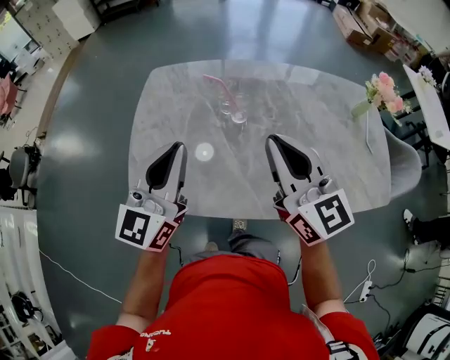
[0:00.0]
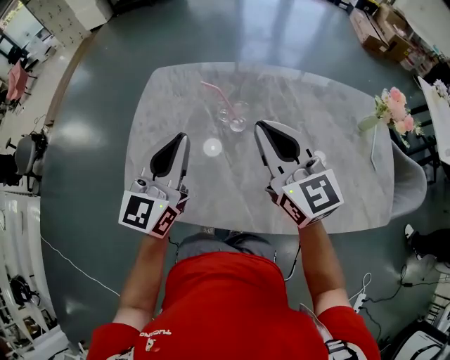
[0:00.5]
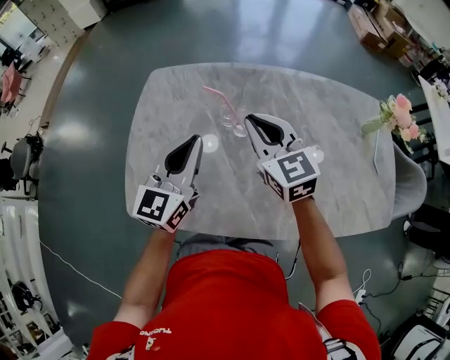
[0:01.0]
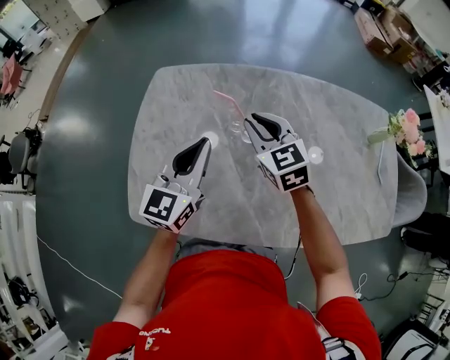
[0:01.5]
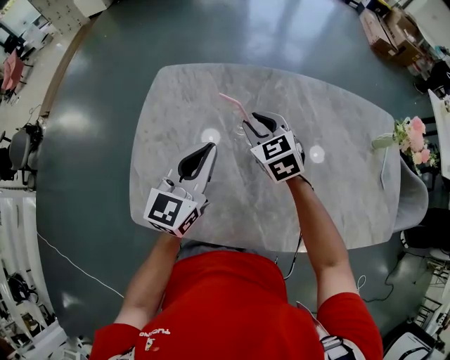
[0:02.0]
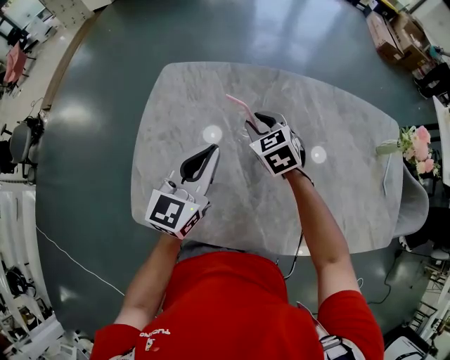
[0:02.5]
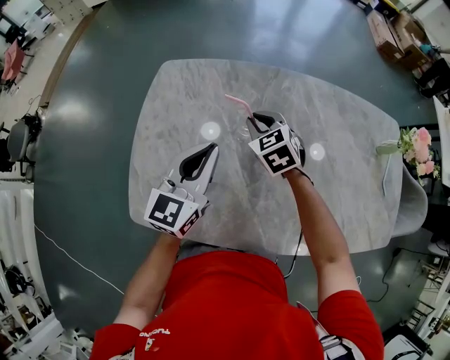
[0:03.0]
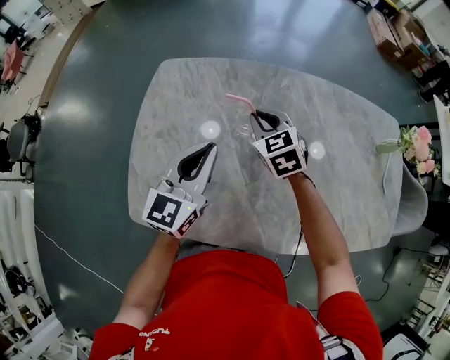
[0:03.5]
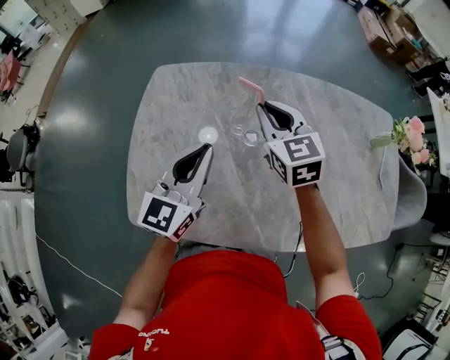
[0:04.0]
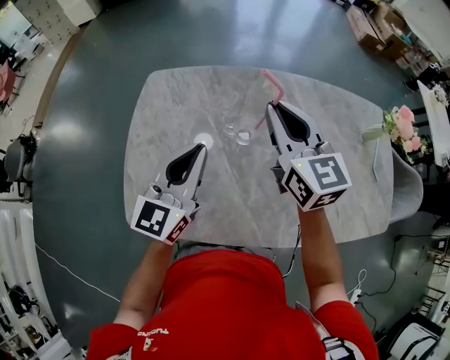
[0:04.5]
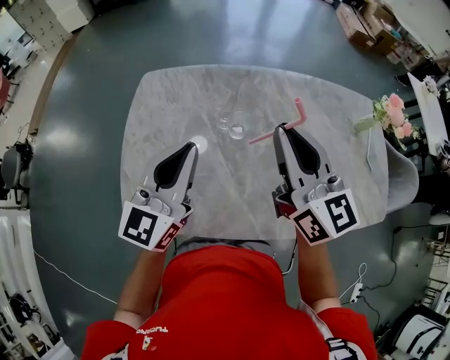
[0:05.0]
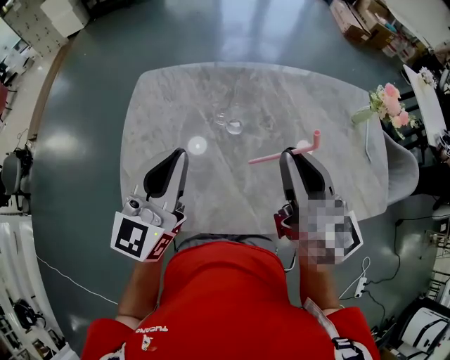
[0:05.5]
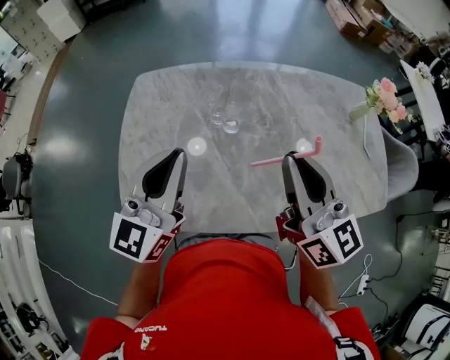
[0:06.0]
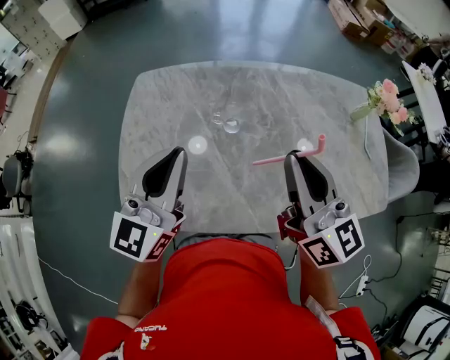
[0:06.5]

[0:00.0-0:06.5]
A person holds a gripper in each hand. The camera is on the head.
0:00.0 to 0:02.0: The right gripper travels forward and downward by some 30 cm, angles its fingers downward, by some 40 degrees, and opens up. The left gripper moves forward and downward, some 15 cm.
0:02.0 to 0:04.5: The right gripper moves upward, approximately 15 cm, and turns by roughly 30 degrees.
0:04.5 to 0:06.5: The left gripper heads backward and upward, covering some 10 cm. The right gripper is displaced backward by roughly 15 cm.

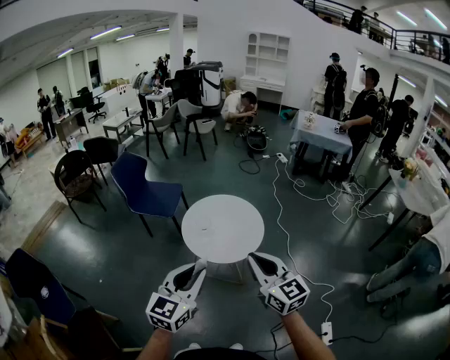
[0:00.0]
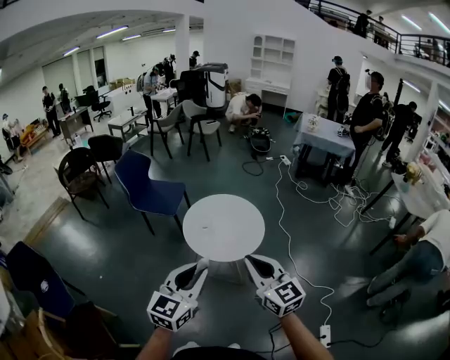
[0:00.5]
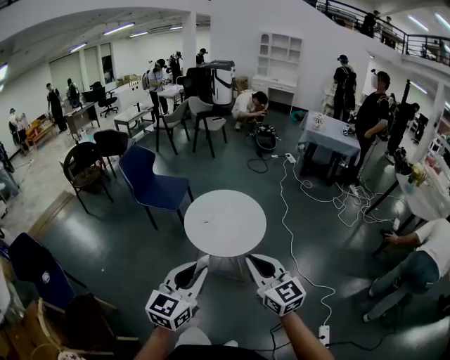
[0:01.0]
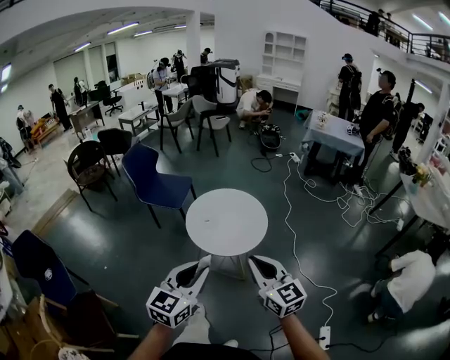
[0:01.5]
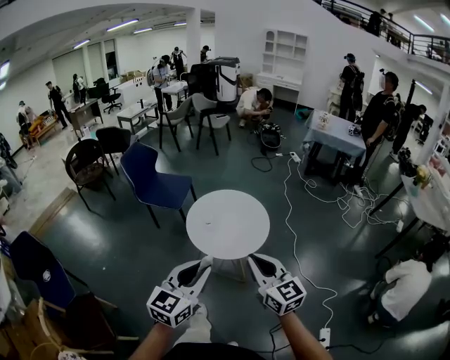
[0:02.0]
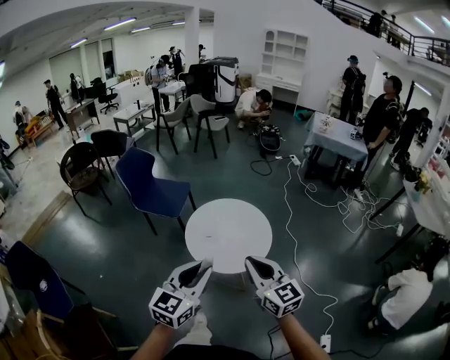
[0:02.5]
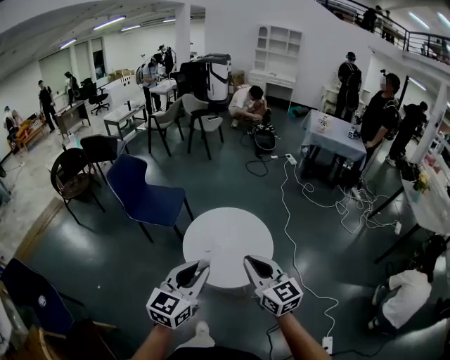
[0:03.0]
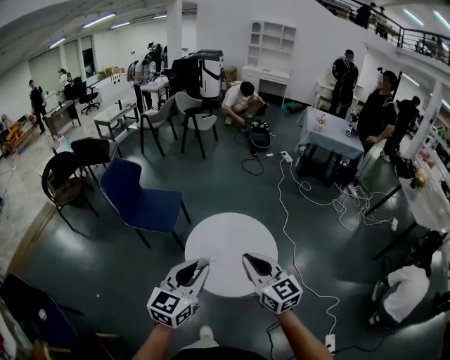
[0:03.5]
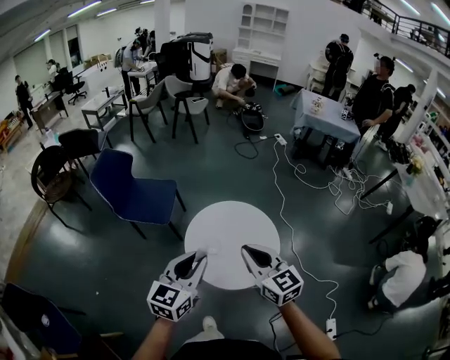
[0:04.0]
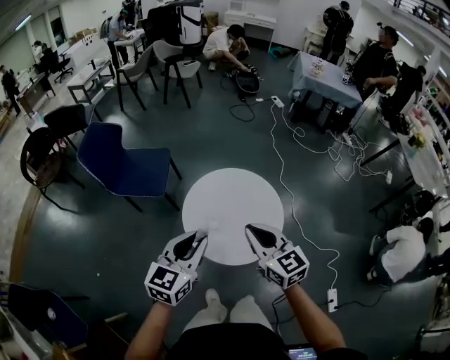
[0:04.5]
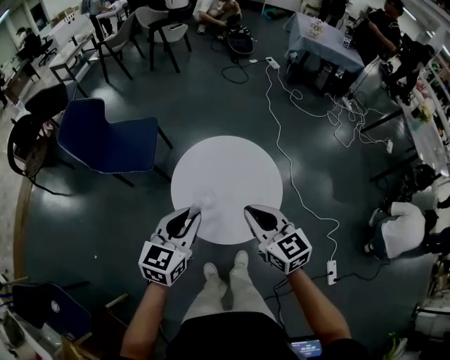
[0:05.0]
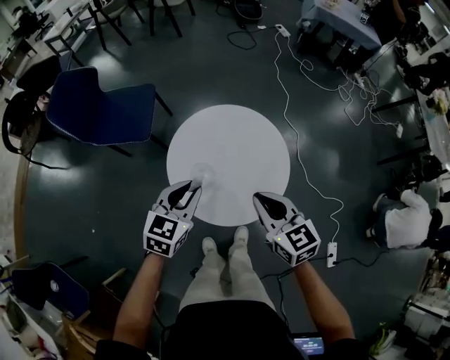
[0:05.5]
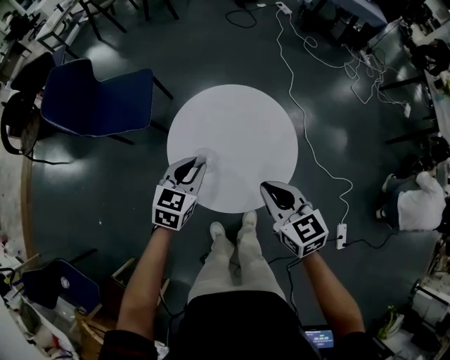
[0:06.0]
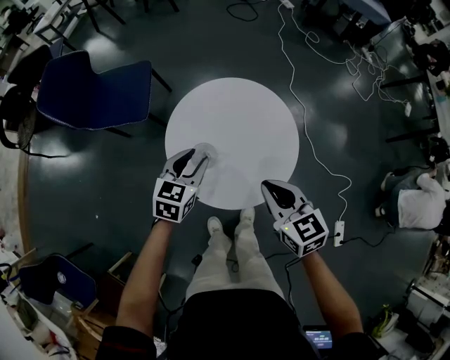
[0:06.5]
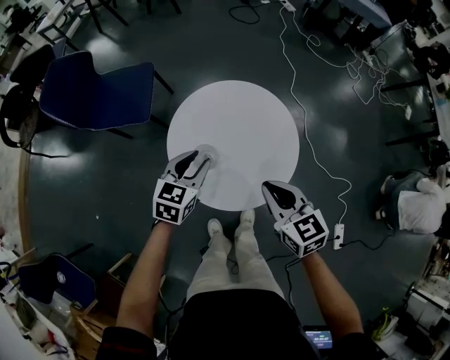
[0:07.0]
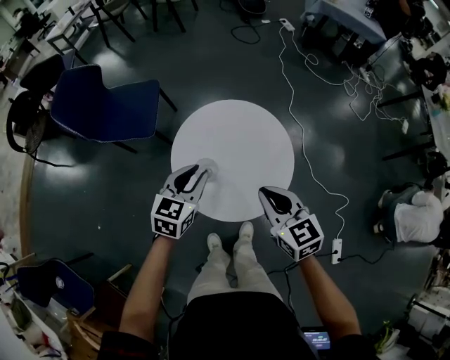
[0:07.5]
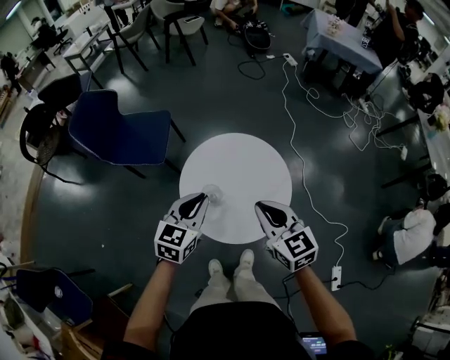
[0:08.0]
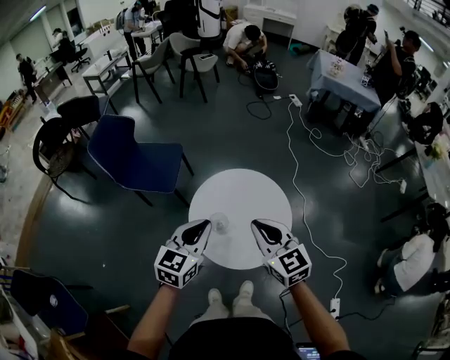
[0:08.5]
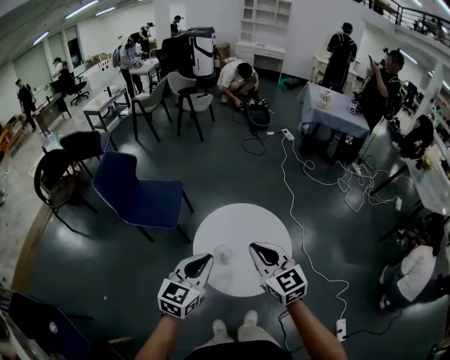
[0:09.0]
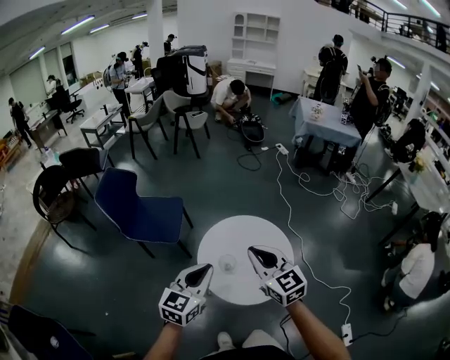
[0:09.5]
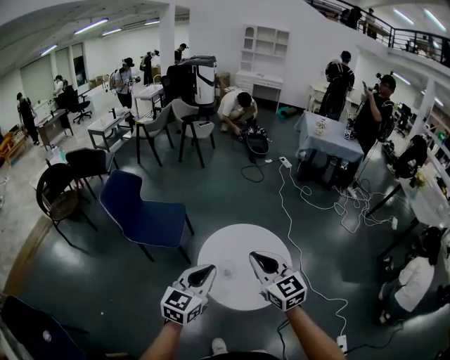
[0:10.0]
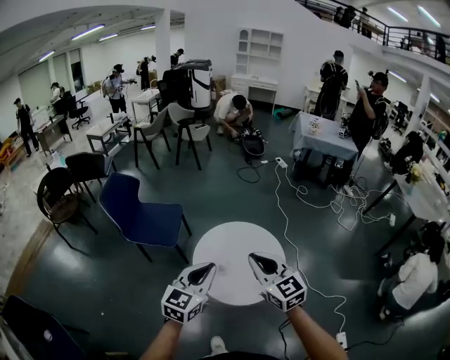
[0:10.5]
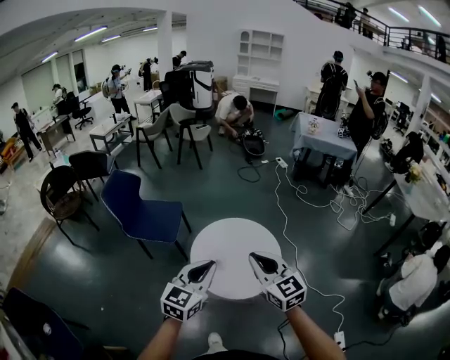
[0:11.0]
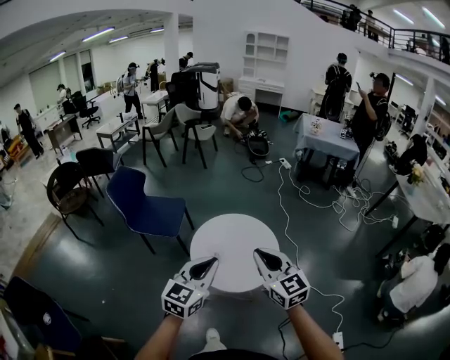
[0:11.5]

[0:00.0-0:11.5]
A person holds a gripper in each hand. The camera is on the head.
0:00.0 to 0:02.0: The right gripper ends up about 5 cm from where it was.
0:02.0 to 0:04.0: The right gripper is displaced forward and to the left by about 40 cm; the left gripper is displaced forward by approximately 40 cm.
0:04.0 to 0:06.0: The right gripper travels downward by roughly 25 cm, and turns by approximately 20 degrees. Meanwhile the left gripper is displaced downward and forward by about 40 cm, and rotates approximately 30 degrees.
0:06.0 to 0:07.5: The left gripper is displaced upward by roughly 5 cm.
0:07.5 to 0:09.5: The left gripper shifts some 25 cm upward and backward, and closes. The right gripper travels upward and to the left by some 25 cm.
0:09.5 to 0:11.5: The left gripper moves backward, to the right and upward, about 20 cm. Meanwhile the right gripper travels backward and to the right by about 20 cm.

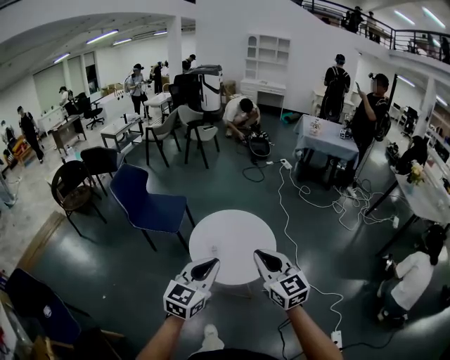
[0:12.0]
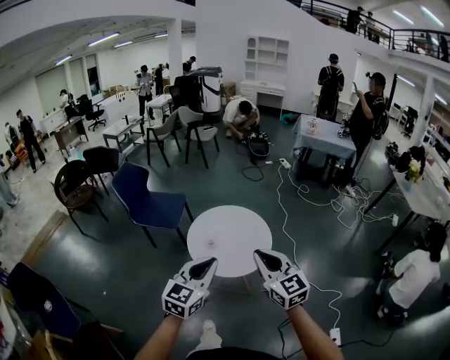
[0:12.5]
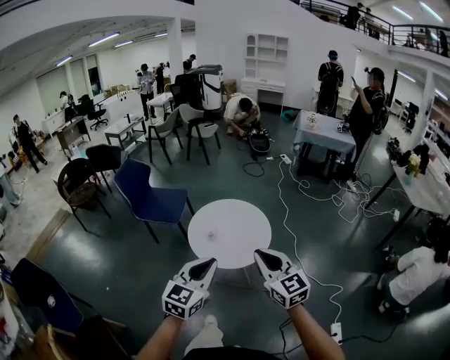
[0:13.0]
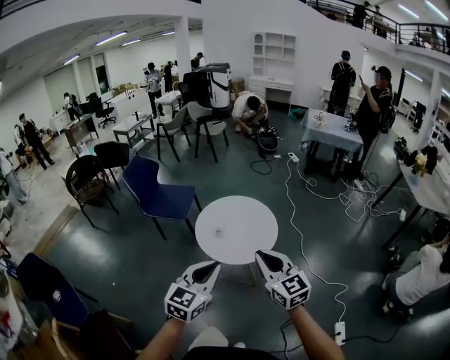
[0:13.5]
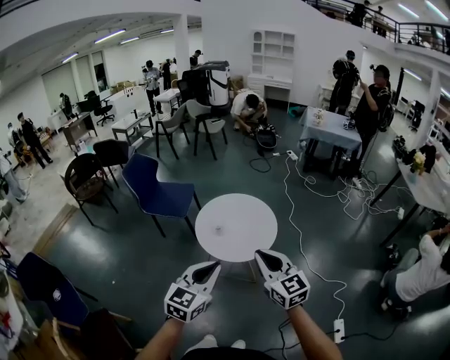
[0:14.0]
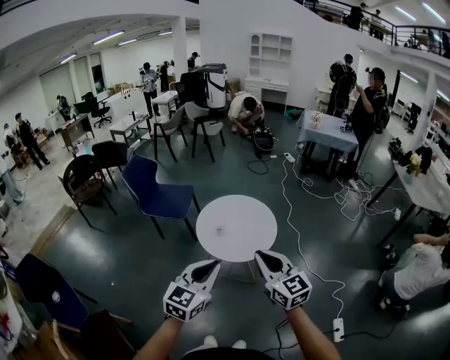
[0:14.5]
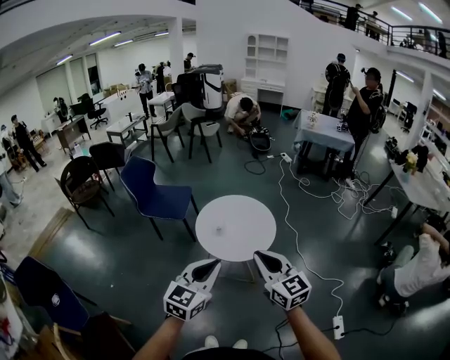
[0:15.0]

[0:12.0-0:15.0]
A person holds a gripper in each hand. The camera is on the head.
0:12.0 to 0:13.5: Both grippers move backward, roughly 15 cm.
0:13.5 to 0:15.0: The left gripper shifts by some 5 cm. Meanwhile the right gripper goes approximately 5 cm to the left.

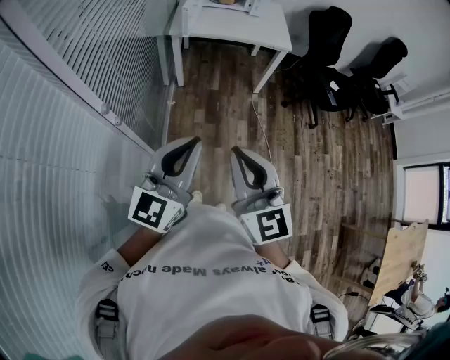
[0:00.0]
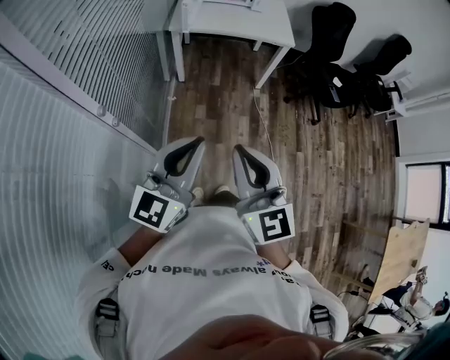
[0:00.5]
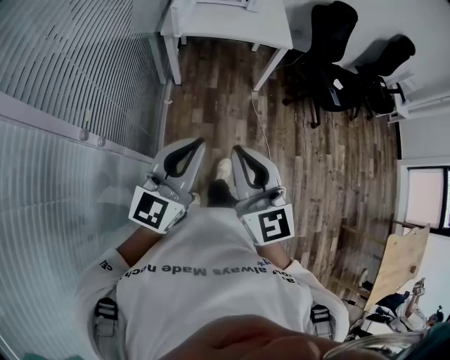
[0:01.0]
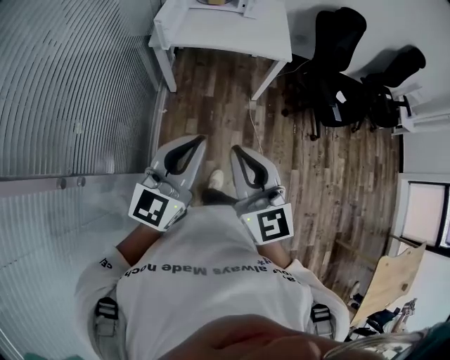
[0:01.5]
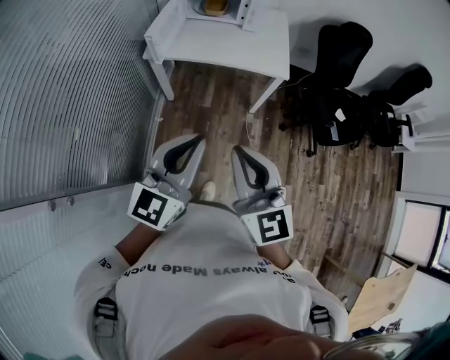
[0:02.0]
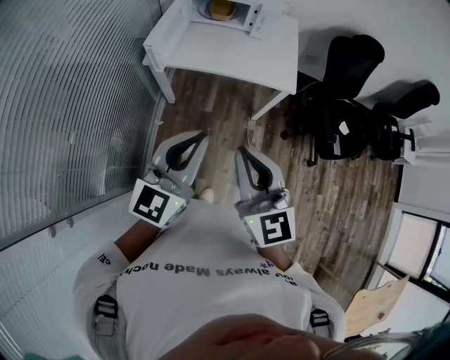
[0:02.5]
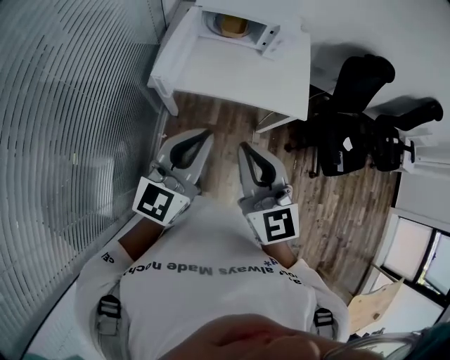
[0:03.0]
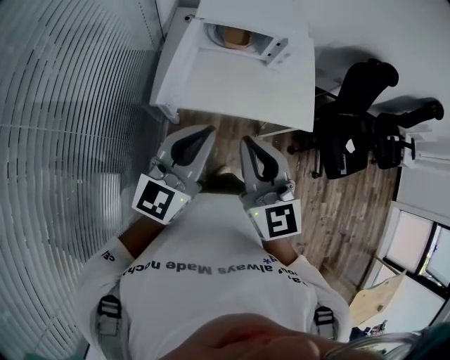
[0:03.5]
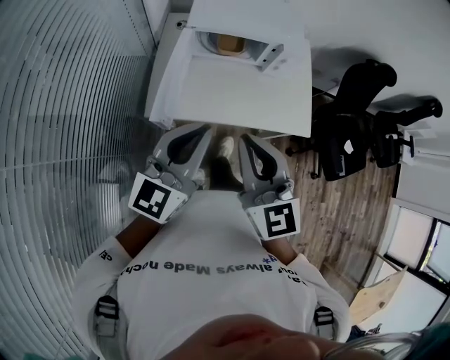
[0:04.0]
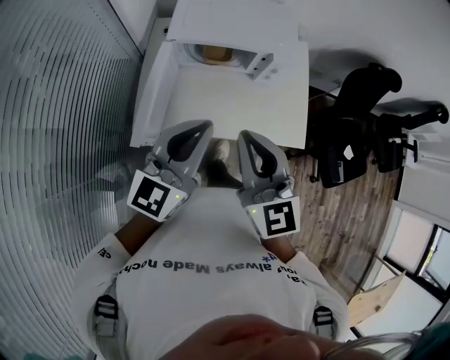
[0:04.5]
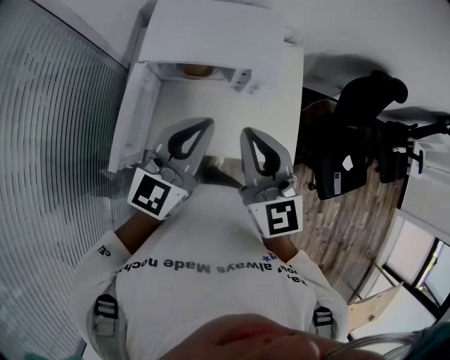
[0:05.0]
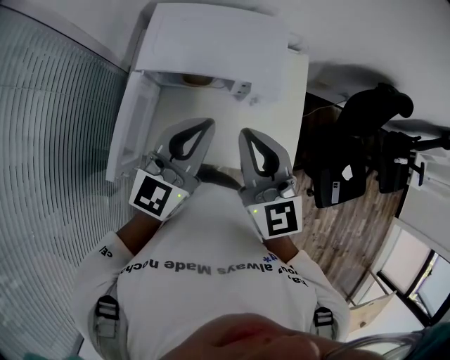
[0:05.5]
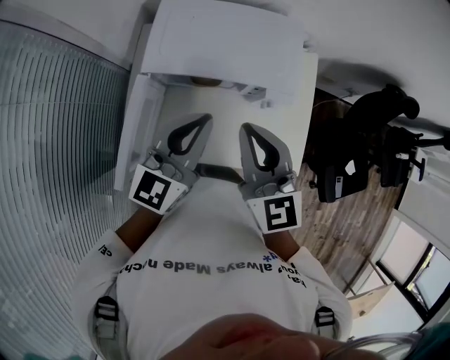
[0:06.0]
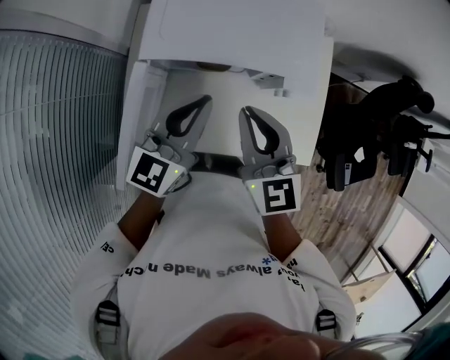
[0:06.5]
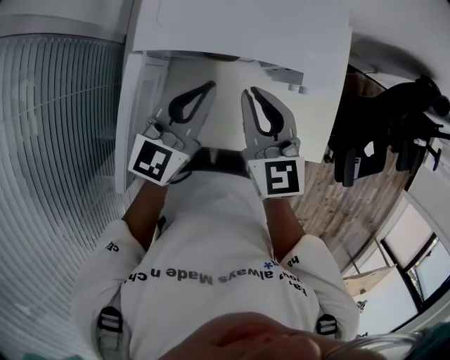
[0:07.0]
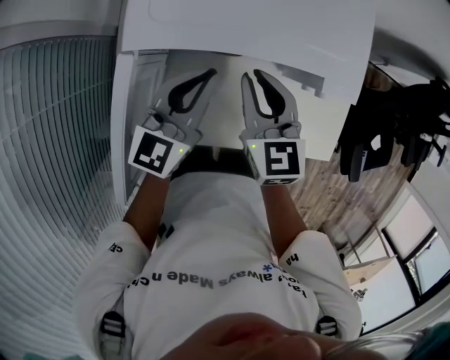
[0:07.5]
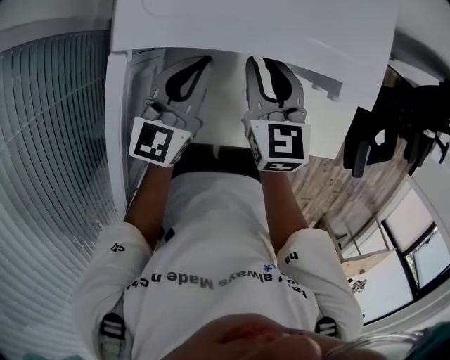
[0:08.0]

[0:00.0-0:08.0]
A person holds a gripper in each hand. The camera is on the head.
0:00.0 to 0:02.0: The two grippers travel together, forward and to the right, approximately 40 cm.
0:02.0 to 0:04.0: The pair of grippers is taken forward, about 50 cm.
0:04.0 to 0:06.0: Both grippers move forward, roughly 35 cm.
0:06.0 to 0:08.0: The grippers both shift downward and forward by roughly 30 cm. The right gripper turns by roughly 20 degrees.
